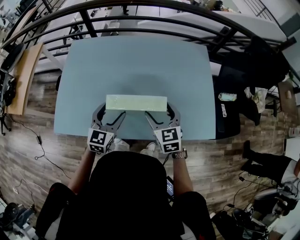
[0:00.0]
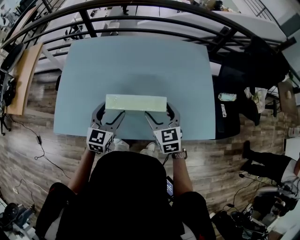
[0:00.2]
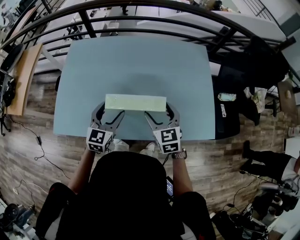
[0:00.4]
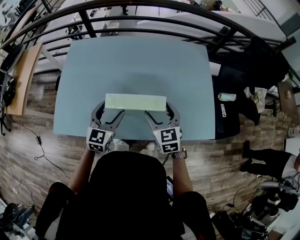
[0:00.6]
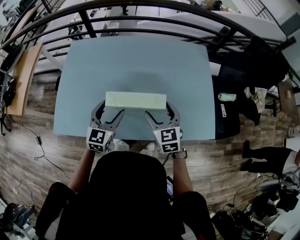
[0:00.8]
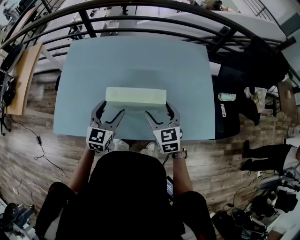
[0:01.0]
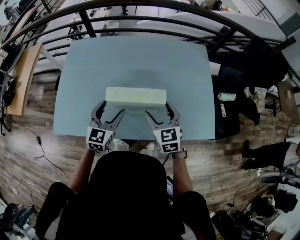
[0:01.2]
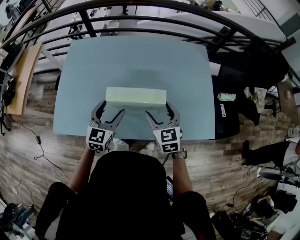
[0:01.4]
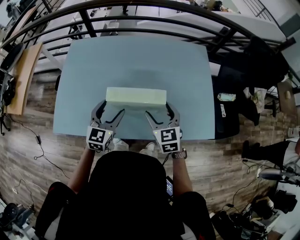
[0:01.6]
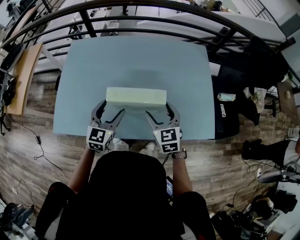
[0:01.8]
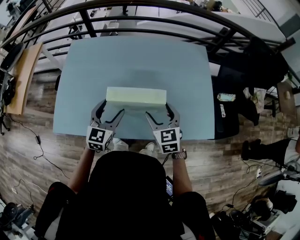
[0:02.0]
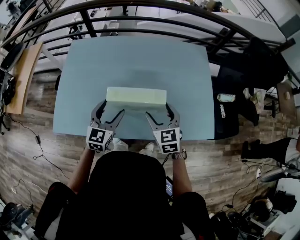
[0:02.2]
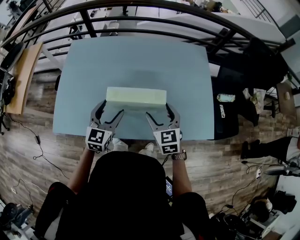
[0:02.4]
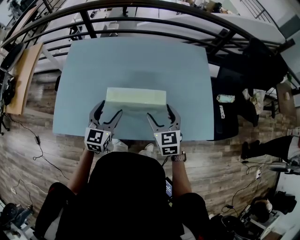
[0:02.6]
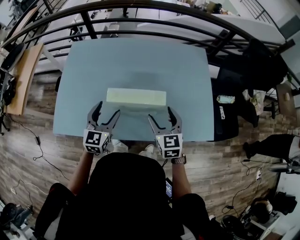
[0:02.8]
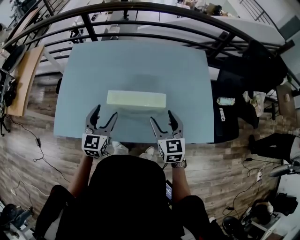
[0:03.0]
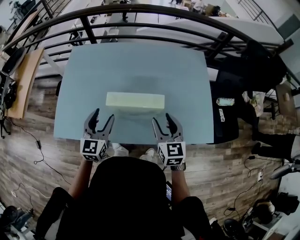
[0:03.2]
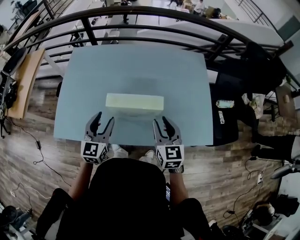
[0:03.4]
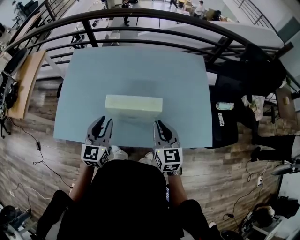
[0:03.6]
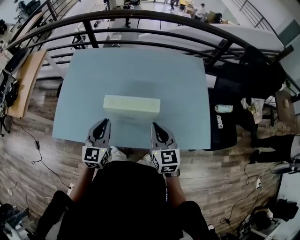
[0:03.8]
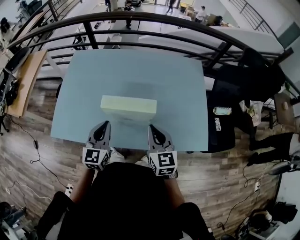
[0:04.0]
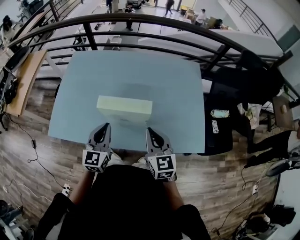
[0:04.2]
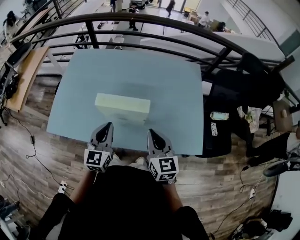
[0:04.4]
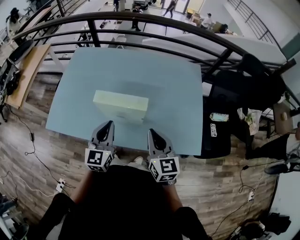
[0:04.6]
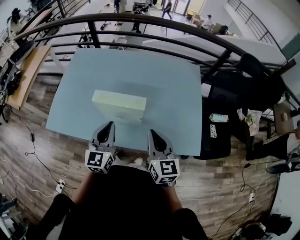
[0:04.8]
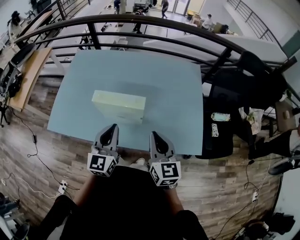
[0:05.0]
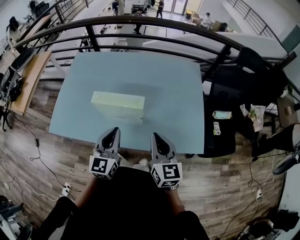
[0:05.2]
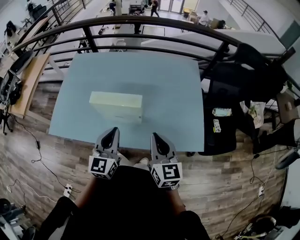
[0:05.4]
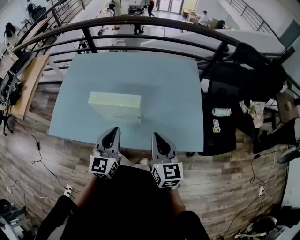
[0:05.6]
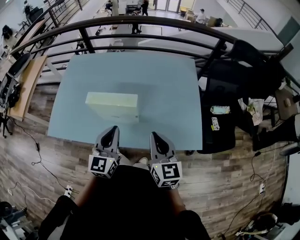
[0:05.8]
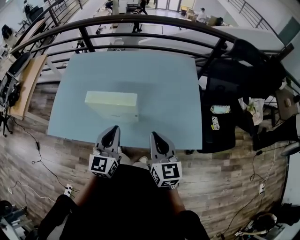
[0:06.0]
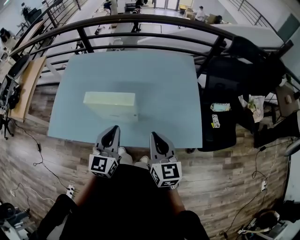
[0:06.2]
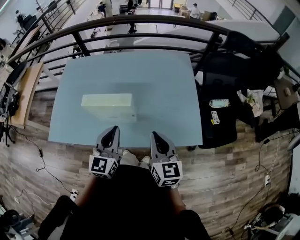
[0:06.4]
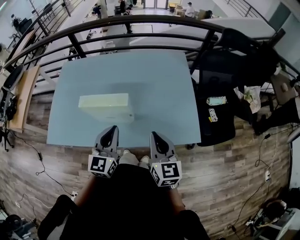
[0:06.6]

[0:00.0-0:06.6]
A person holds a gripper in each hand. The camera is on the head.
0:00.0 to 0:01.6: Both grippers stay about where they are.
0:01.6 to 0:03.2: The right gripper changes place by approximately 5 cm, and closes its fingers.
0:03.2 to 0:05.0: The right gripper moves backward and to the right, some 10 cm, and closes; the left gripper heads to the right and backward, covering some 15 cm, and closes its fingers.
0:05.0 to 0:06.6: The right gripper ends up approximately 5 cm from where it was. Meanwhile the left gripper goes roughly 5 cm to the right.

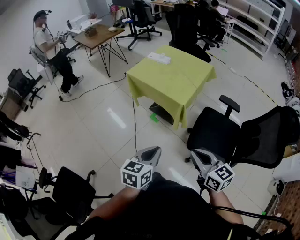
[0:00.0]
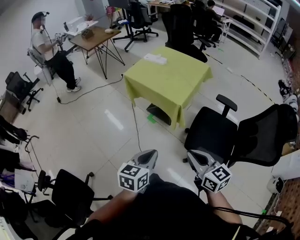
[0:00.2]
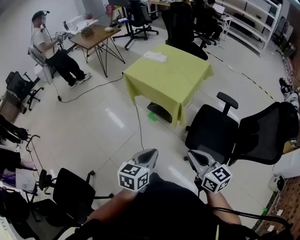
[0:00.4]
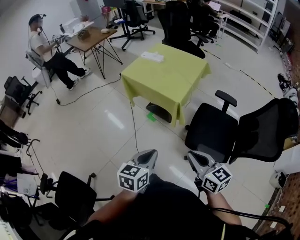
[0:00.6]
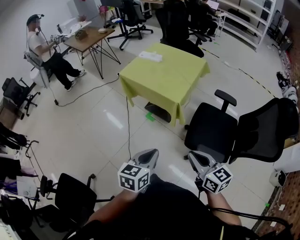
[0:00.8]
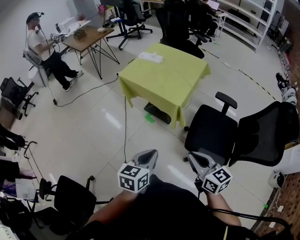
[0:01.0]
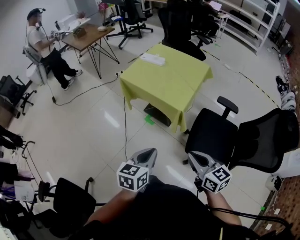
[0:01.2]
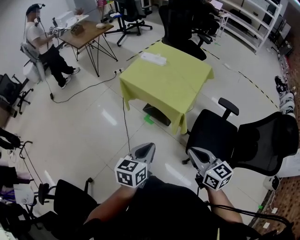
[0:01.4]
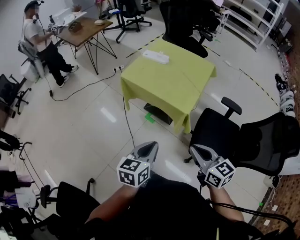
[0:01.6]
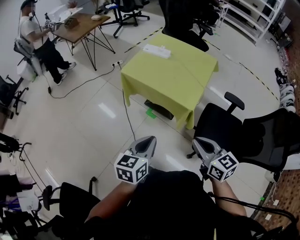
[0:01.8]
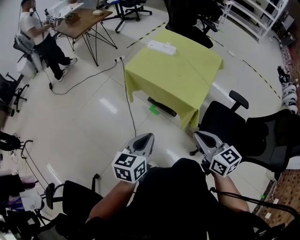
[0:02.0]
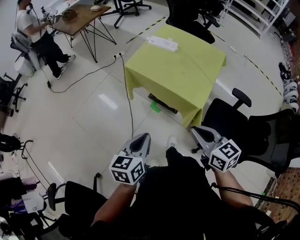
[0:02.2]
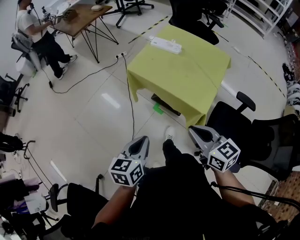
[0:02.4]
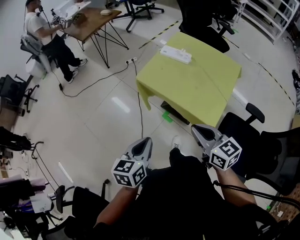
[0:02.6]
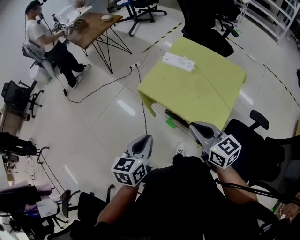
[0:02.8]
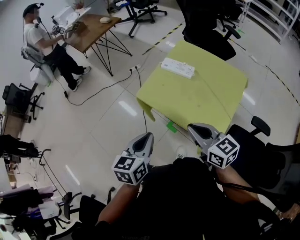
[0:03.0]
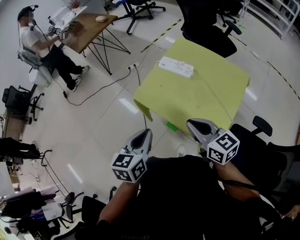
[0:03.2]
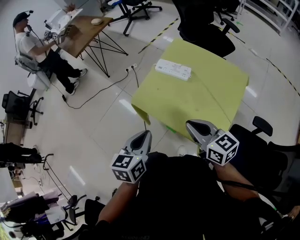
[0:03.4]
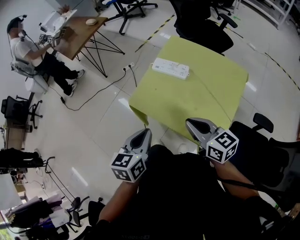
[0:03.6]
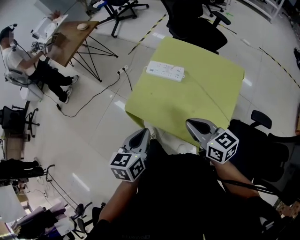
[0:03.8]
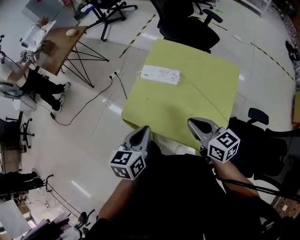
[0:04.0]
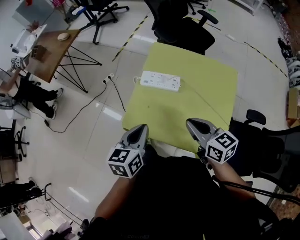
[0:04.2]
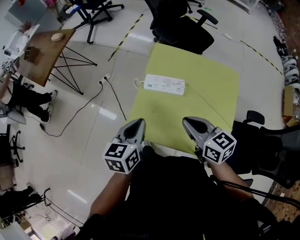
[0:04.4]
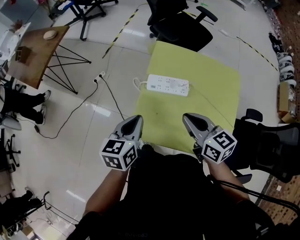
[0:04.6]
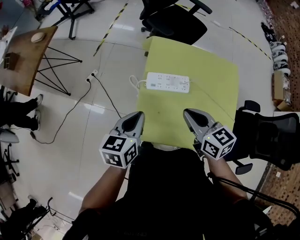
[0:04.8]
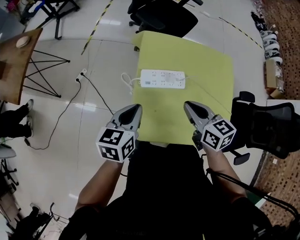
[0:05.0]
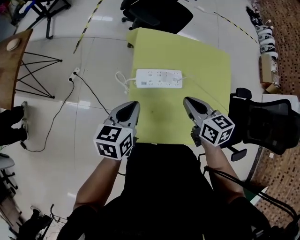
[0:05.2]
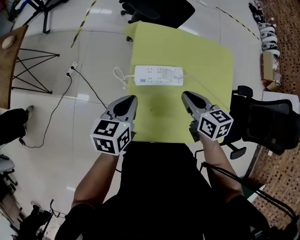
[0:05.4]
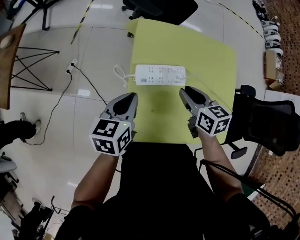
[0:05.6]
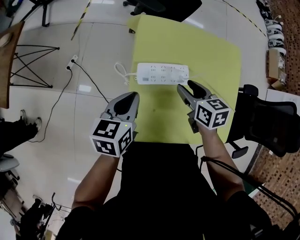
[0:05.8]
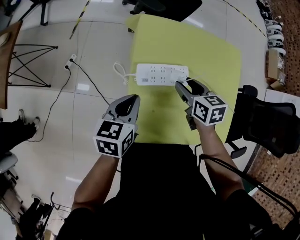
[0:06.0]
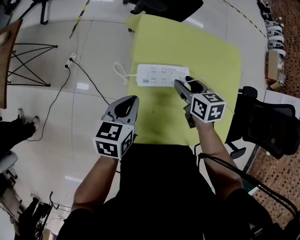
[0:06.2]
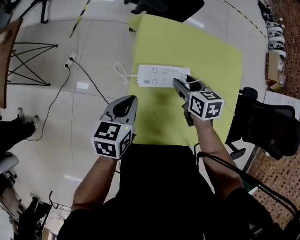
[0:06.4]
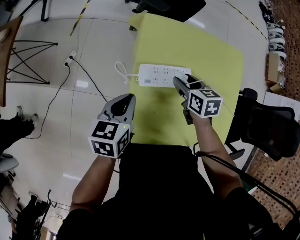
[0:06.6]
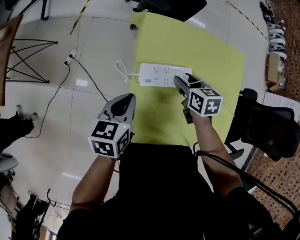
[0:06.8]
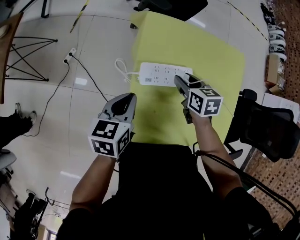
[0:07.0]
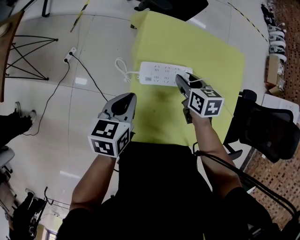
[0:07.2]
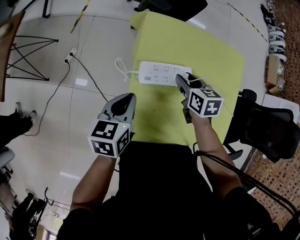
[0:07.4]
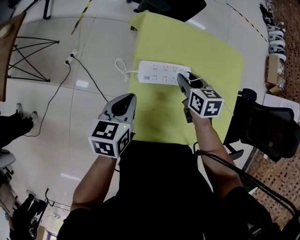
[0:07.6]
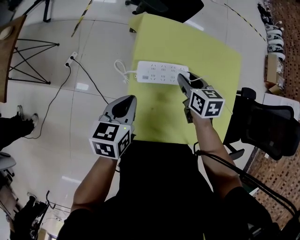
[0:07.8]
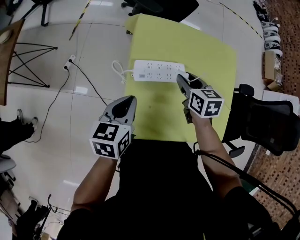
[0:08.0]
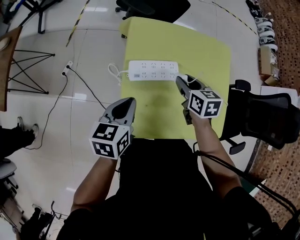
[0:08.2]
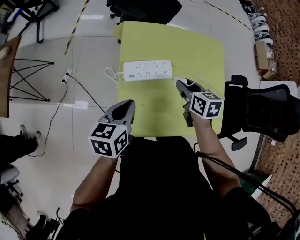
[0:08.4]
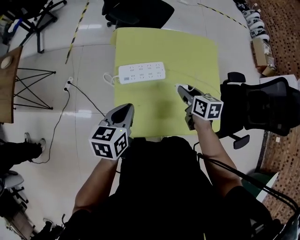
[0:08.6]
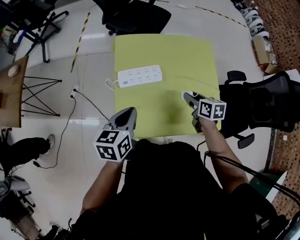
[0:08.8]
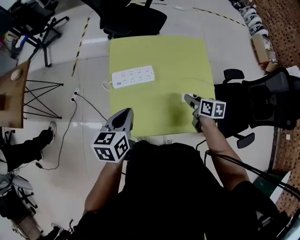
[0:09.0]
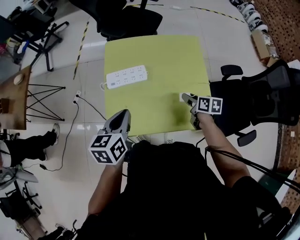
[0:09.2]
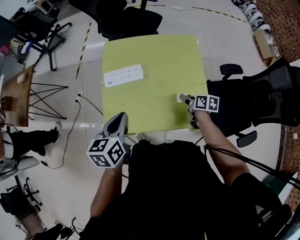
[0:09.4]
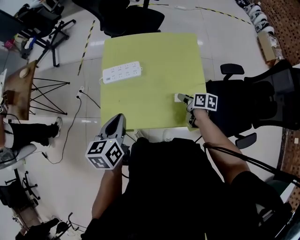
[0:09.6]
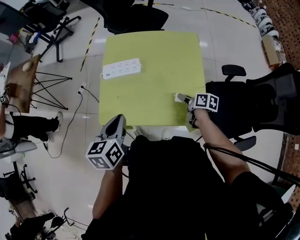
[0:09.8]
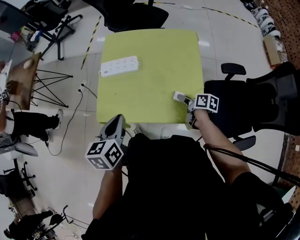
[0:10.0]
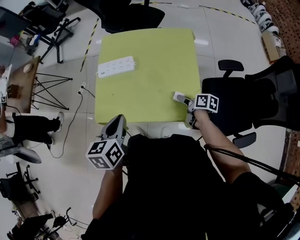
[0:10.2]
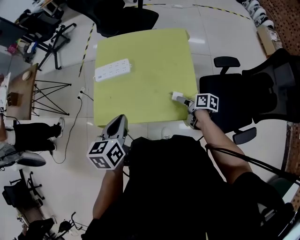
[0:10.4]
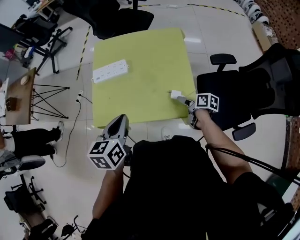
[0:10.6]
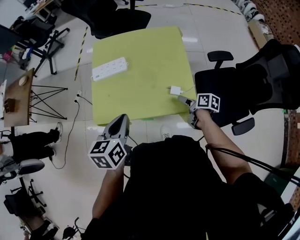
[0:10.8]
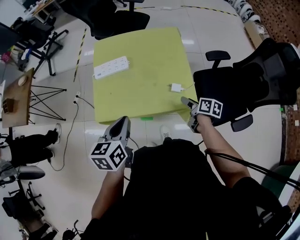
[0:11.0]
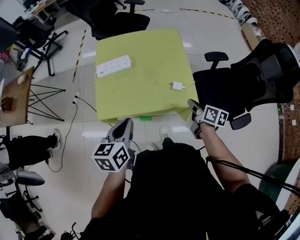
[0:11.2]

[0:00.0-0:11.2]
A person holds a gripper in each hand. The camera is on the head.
0:00.0 to 0:01.6: The two grippers go some 15 cm forward and to the left.
0:01.6 to 0:03.2: Both grippers move forward, roughly 35 cm.
0:03.2 to 0:04.8: The left gripper moves about 30 cm, and turns by approximately 30 degrees; the right gripper shifts by about 25 cm, and swivels roughly 30 degrees.
0:04.8 to 0:06.4: The left gripper moves forward and downward, roughly 10 cm, while the right gripper heads downward and forward, covering roughly 20 cm, rotates approximately 30 degrees, and opens its fingers.
0:06.4 to 0:08.0: There are only small adjustments of the grippers.
0:08.0 to 0:09.6: The left gripper travels to the right, backward and upward by some 20 cm; the right gripper is displaced to the right and backward by roughly 30 cm, and rotates roughly 40 degrees.
0:09.6 to 0:11.2: The right gripper goes some 20 cm backward and upward, and closes; the left gripper is displaced backward by roughly 10 cm.

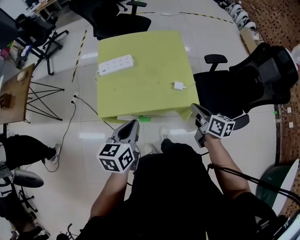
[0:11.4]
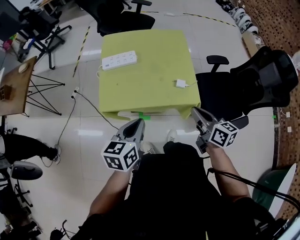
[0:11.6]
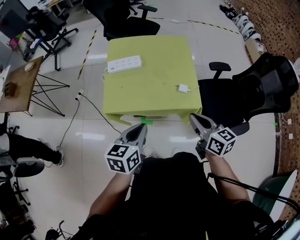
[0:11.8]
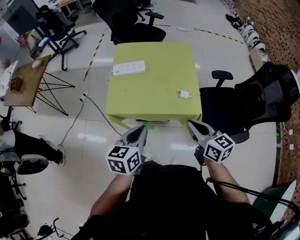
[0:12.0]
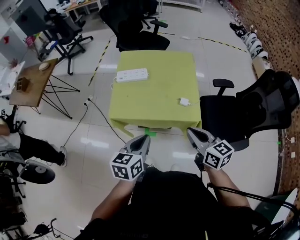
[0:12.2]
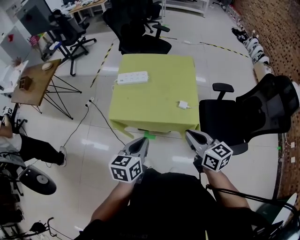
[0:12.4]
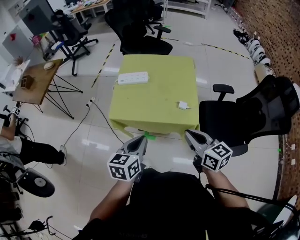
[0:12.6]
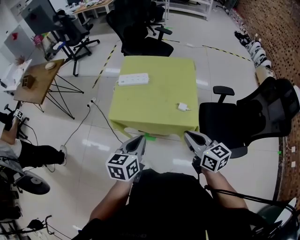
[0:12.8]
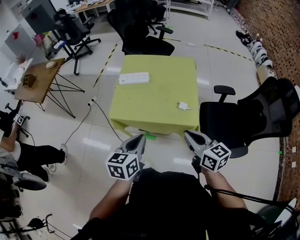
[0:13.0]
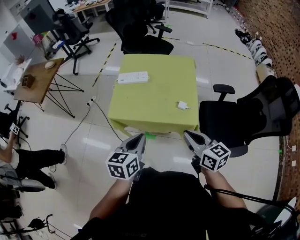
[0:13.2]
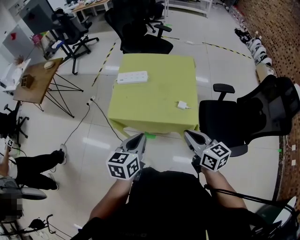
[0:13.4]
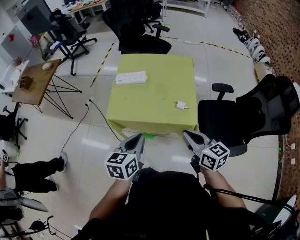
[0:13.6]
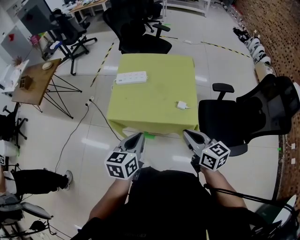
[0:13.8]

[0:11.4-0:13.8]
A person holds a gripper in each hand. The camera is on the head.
0:11.4 to 0:12.6: The right gripper moves upward, backward and to the left, some 15 cm, and changes its angle by some 30 degrees. The left gripper is displaced backward by some 5 cm.
0:12.6 to 0:13.8: The grippers make only small movements.

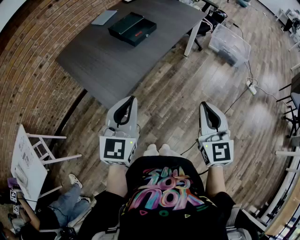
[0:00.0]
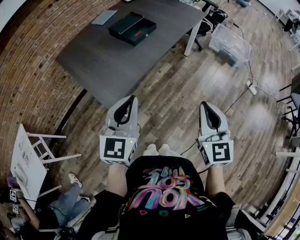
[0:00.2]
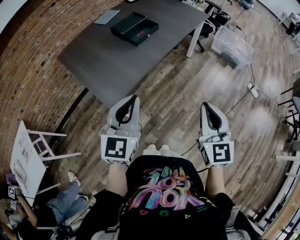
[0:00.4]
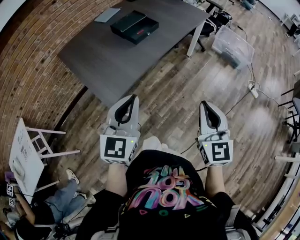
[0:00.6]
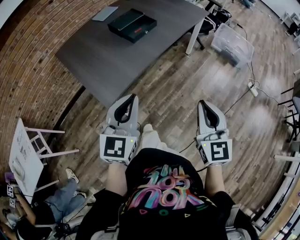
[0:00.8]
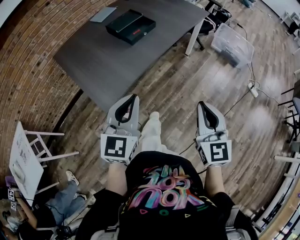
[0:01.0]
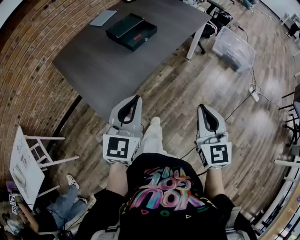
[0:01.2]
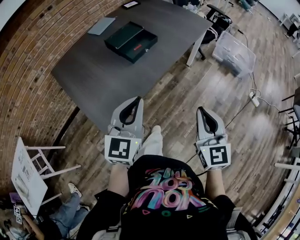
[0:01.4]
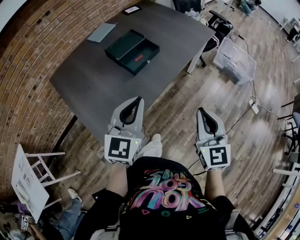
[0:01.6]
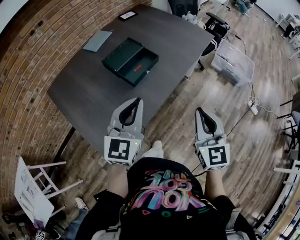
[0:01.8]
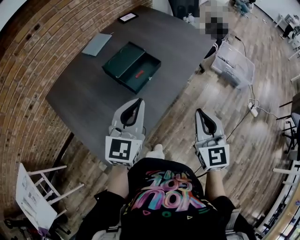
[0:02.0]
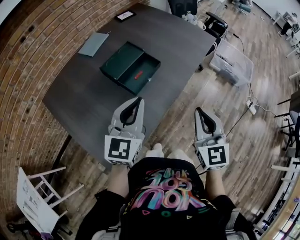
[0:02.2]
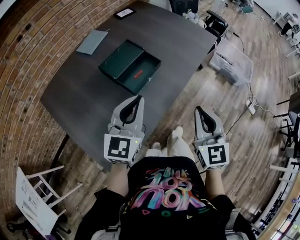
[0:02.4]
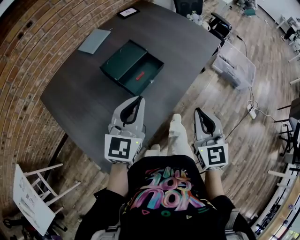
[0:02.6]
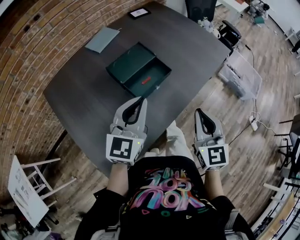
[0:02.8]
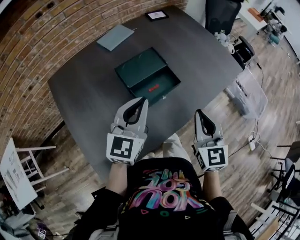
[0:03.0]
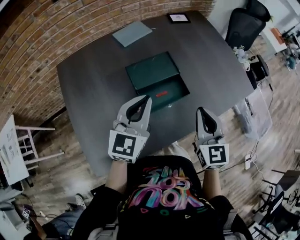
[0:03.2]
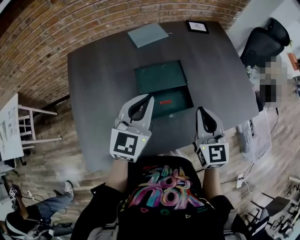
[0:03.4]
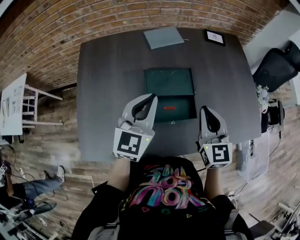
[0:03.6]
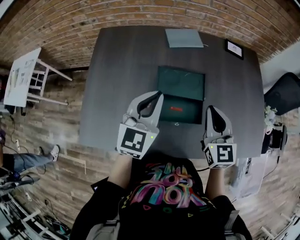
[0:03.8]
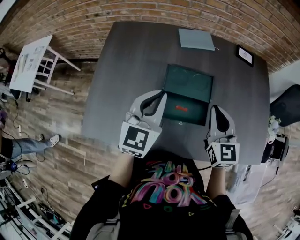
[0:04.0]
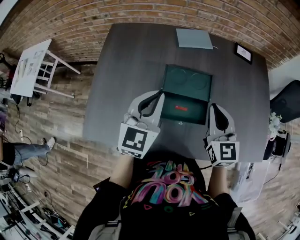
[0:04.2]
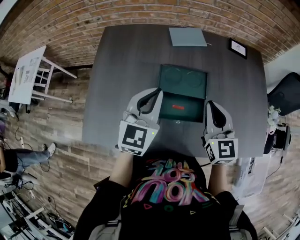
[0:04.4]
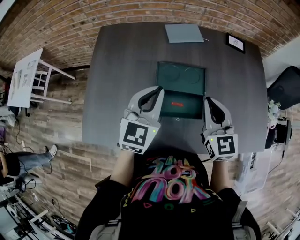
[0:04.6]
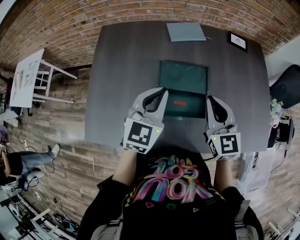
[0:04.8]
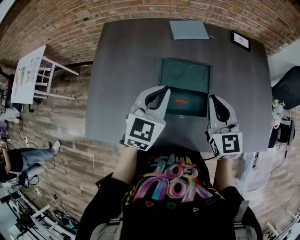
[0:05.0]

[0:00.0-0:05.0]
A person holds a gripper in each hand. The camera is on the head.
0:00.0 to 0:01.6: Both grippers travel together forward, approximately 20 cm.
0:01.6 to 0:03.4: The left gripper ends up some 30 cm from where it was, and rotates roughly 30 degrees. Meanwhile the right gripper changes place by about 40 cm, and rotates approximately 30 degrees.
0:03.4 to 0:05.0: The right gripper moves forward, roughly 10 cm, and changes its angle by roughly 20 degrees.
